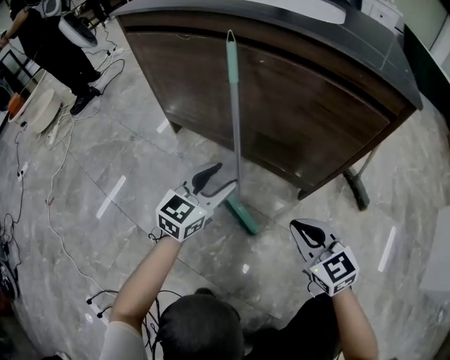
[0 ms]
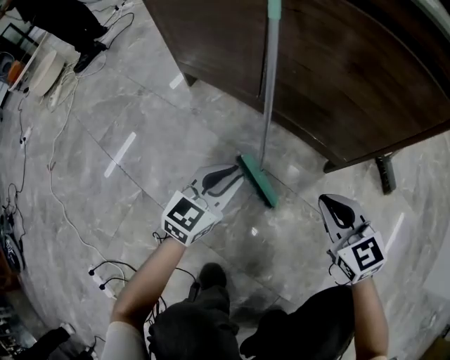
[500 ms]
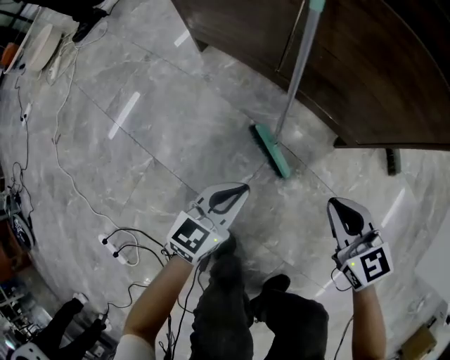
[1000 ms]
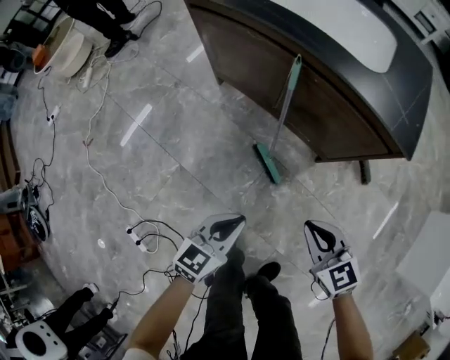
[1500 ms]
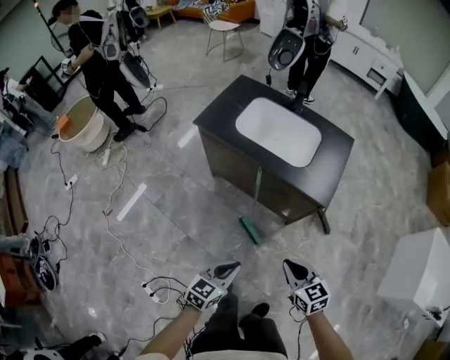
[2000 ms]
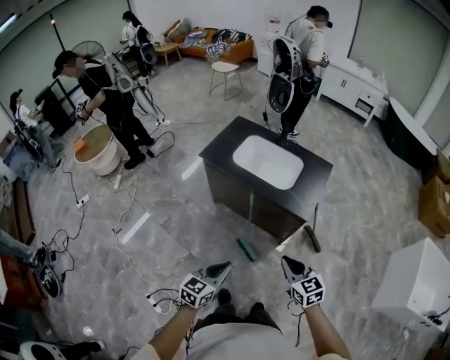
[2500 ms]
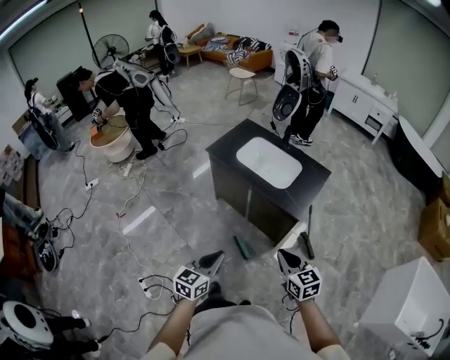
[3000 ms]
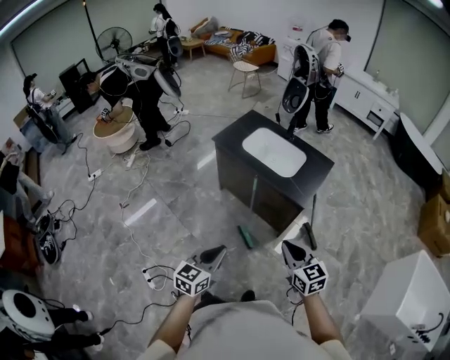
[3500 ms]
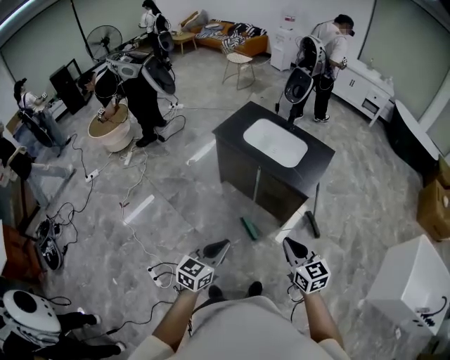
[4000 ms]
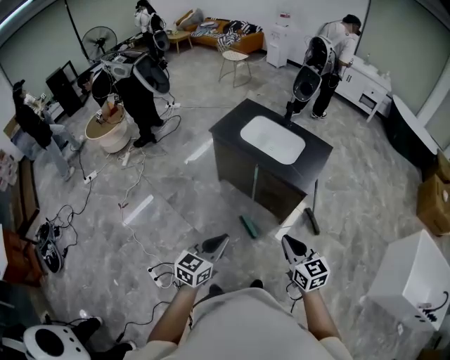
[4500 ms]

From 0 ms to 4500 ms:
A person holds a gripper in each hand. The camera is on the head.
From 0 ms to 2000 ms: The left gripper shifts approximately 50 cm upward and backward, turns by roughly 20 degrees, and closes its fingers. Meanwhile the right gripper heads upward, covering roughly 50 cm.
From 2000 ms to 4500 ms: Both grippers travel together upward and backward, about 30 cm.

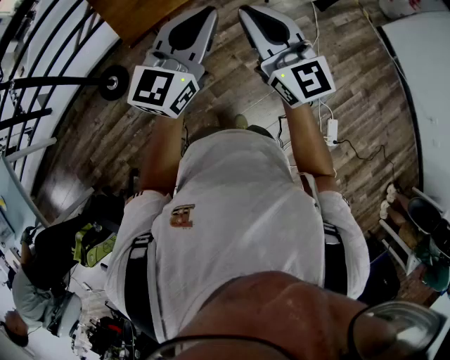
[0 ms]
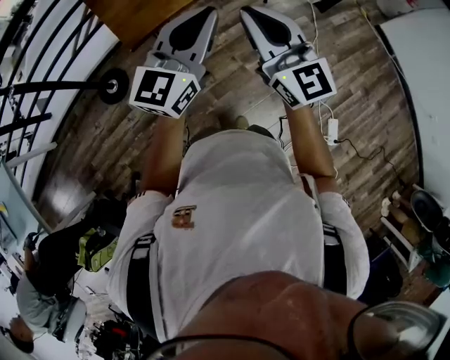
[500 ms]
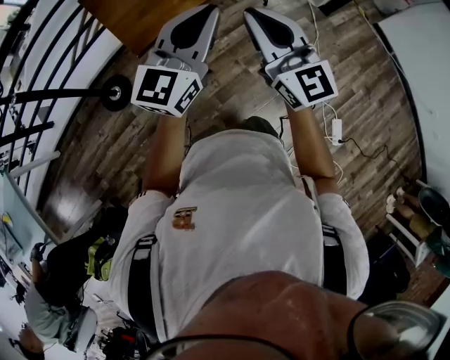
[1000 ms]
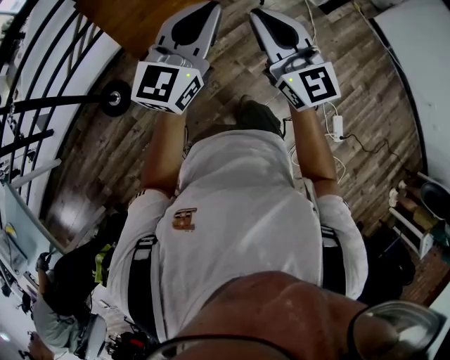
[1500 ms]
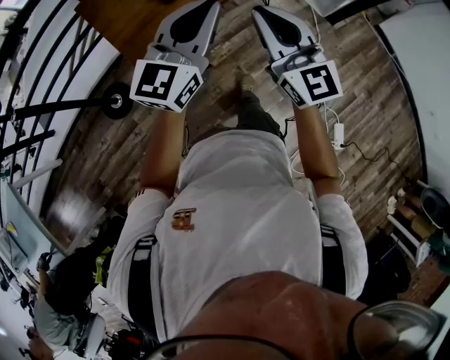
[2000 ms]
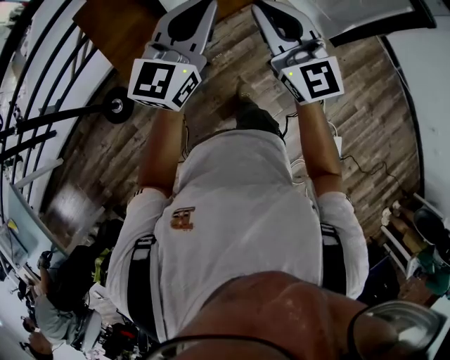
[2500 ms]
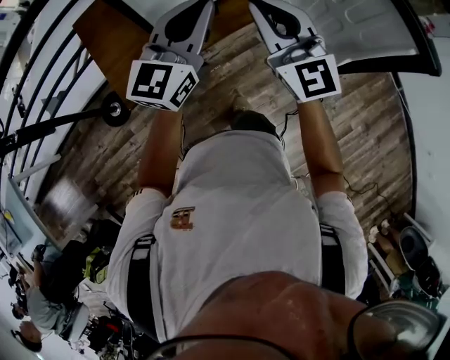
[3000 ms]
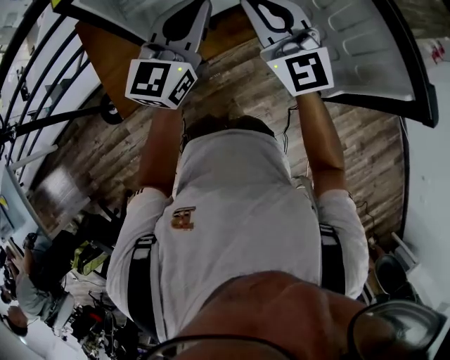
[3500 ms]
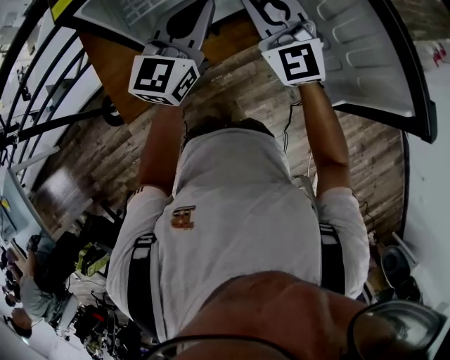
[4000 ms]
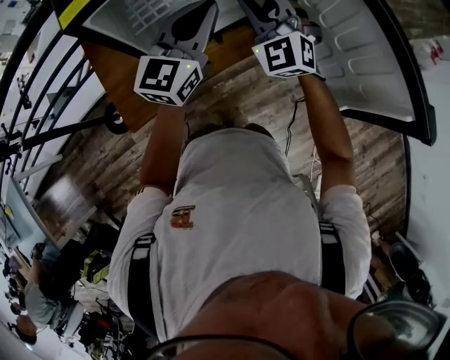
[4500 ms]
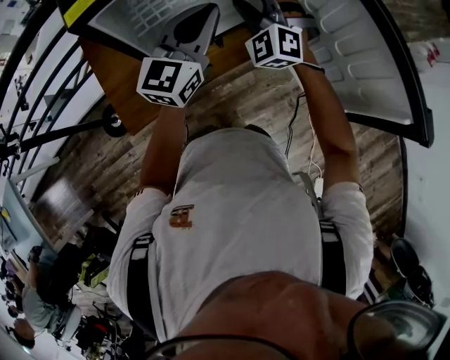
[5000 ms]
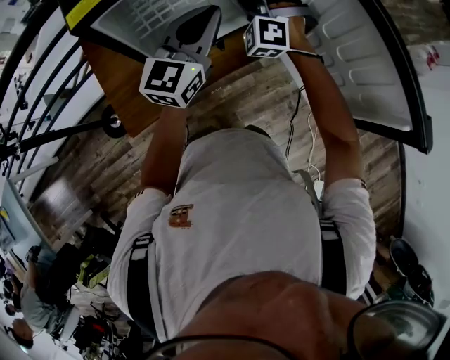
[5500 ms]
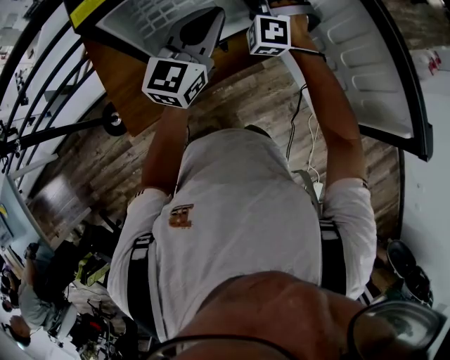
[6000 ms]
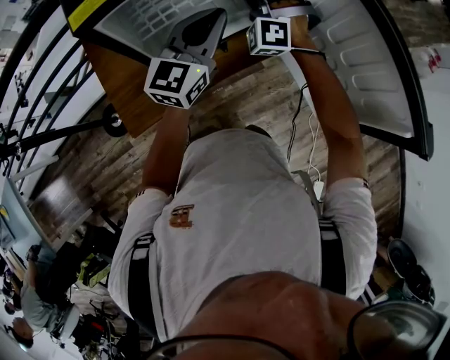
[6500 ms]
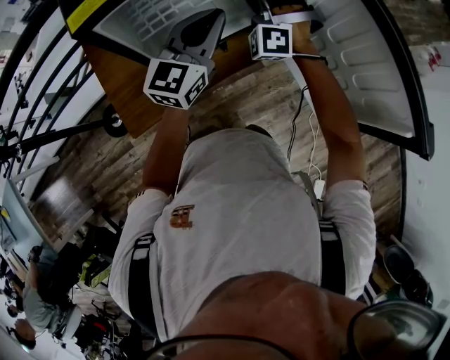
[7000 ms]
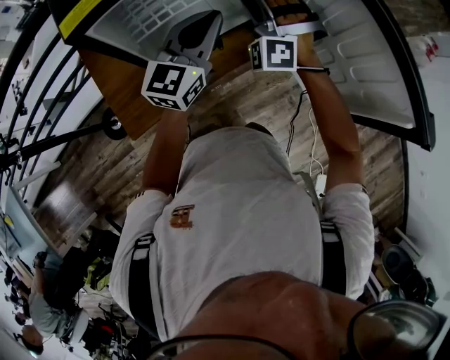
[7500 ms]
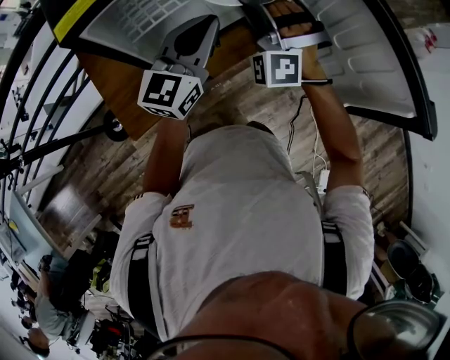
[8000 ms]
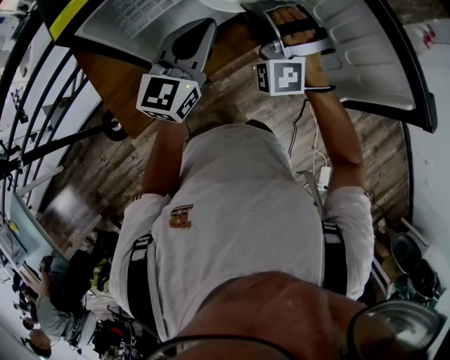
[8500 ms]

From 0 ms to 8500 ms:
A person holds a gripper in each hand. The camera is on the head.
From 0 ms to 2000 ms: The left gripper travels forward and to the left by approximately 15 cm, while the right gripper travels forward by approximately 10 cm.
From 2000 ms to 4000 ms: Both grippers are carried forward, about 40 cm. The right gripper rotates roughly 30 degrees.
From 4000 ms to 6500 ms: The right gripper travels forward and downward by approximately 15 cm, twists about 50 degrees counterclockwise, seen from behind, and opens, then closes again.
From 6500 ms to 8500 ms: The right gripper is displaced backward and to the right by approximately 10 cm.

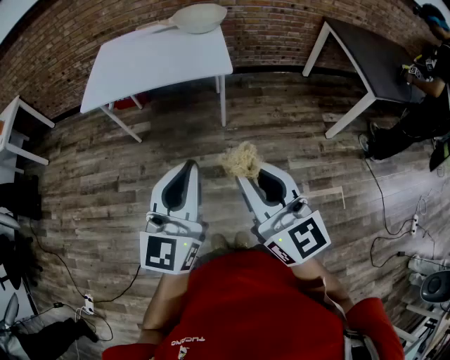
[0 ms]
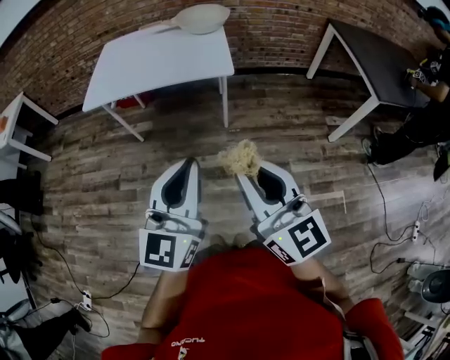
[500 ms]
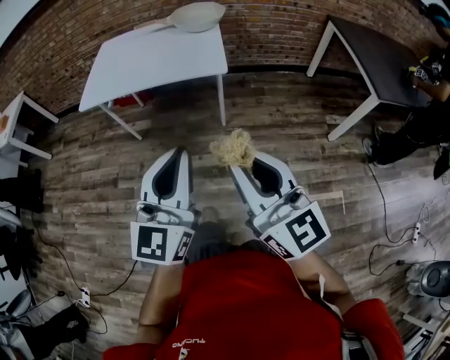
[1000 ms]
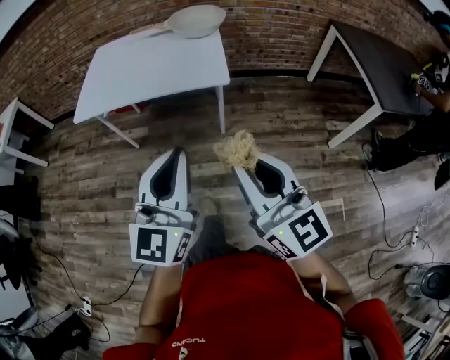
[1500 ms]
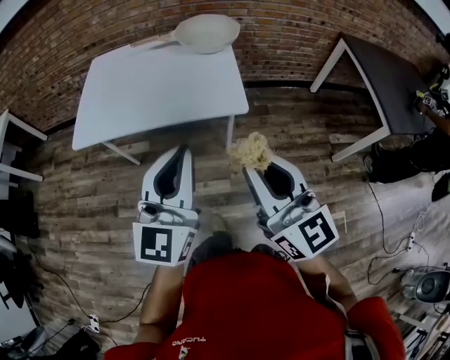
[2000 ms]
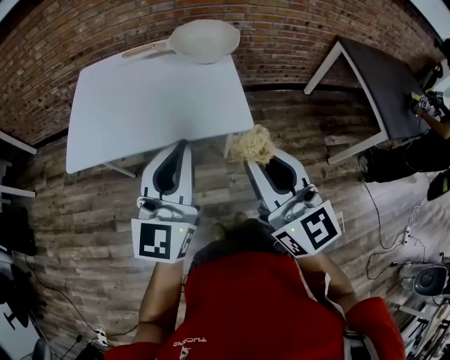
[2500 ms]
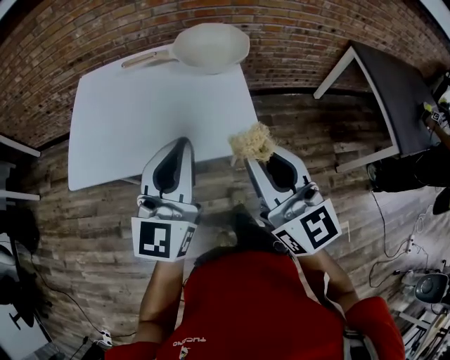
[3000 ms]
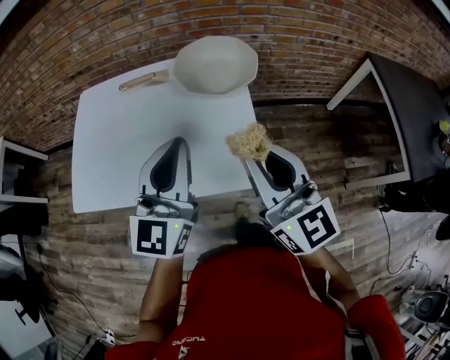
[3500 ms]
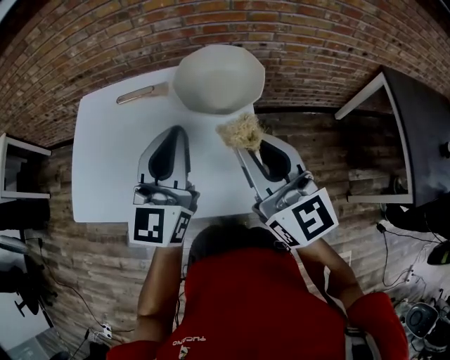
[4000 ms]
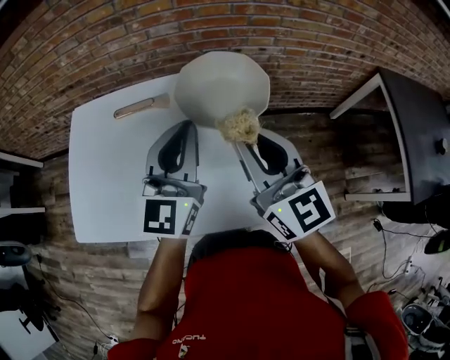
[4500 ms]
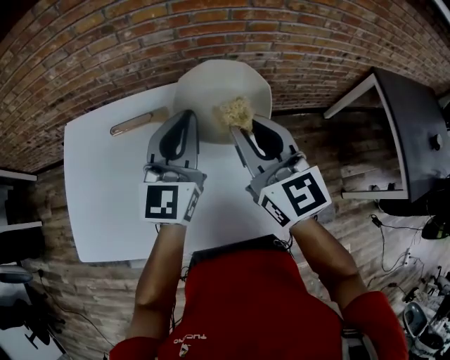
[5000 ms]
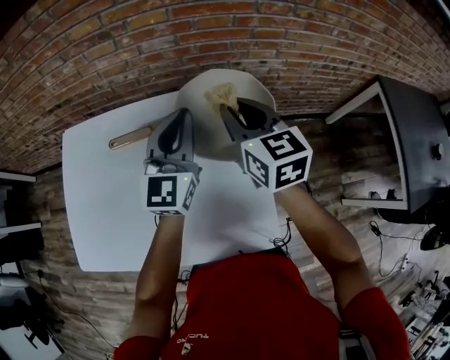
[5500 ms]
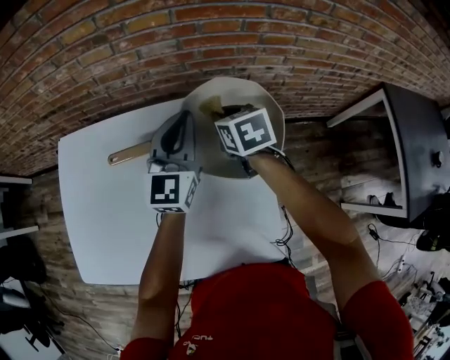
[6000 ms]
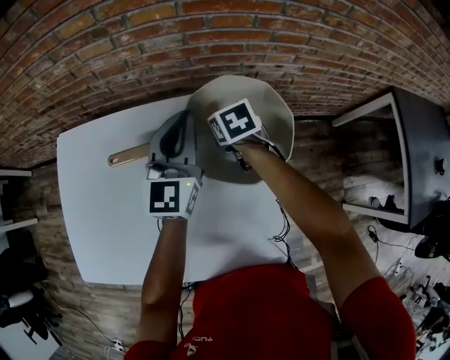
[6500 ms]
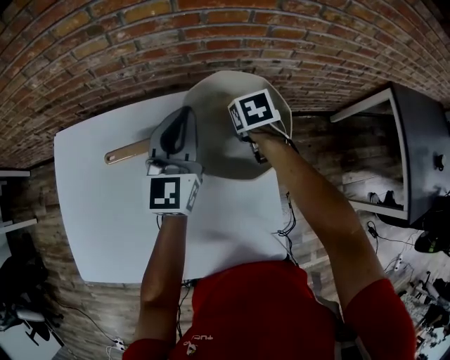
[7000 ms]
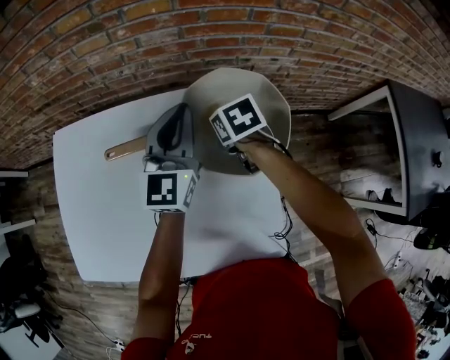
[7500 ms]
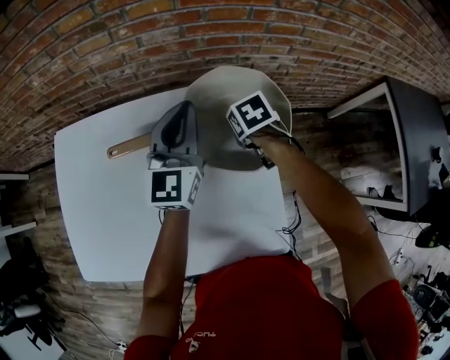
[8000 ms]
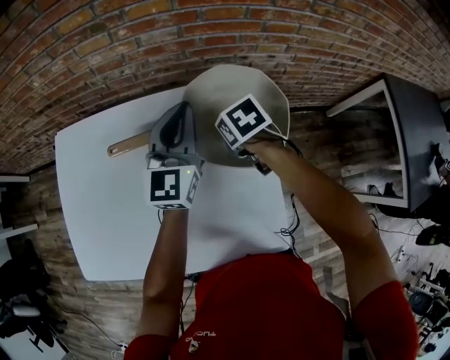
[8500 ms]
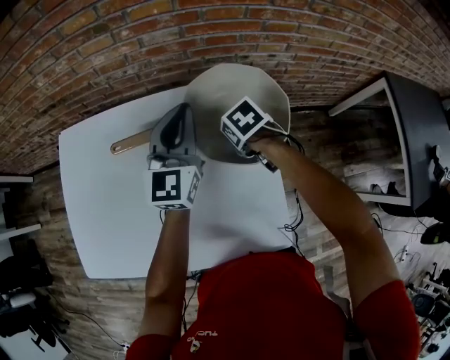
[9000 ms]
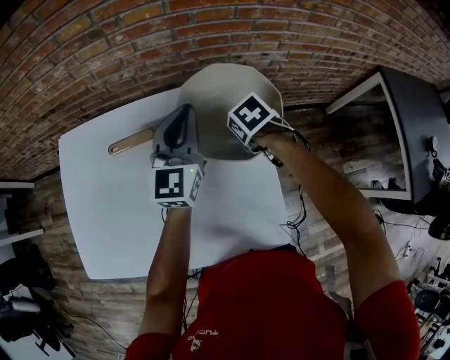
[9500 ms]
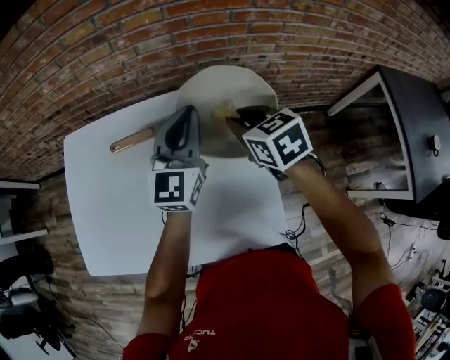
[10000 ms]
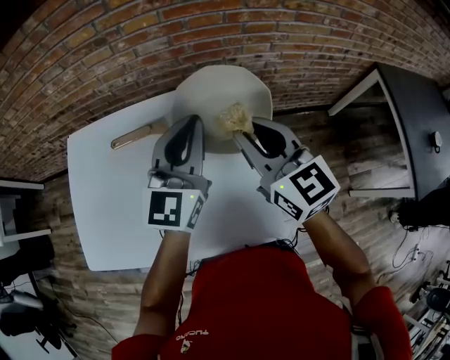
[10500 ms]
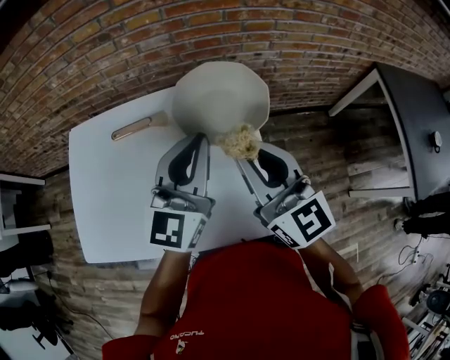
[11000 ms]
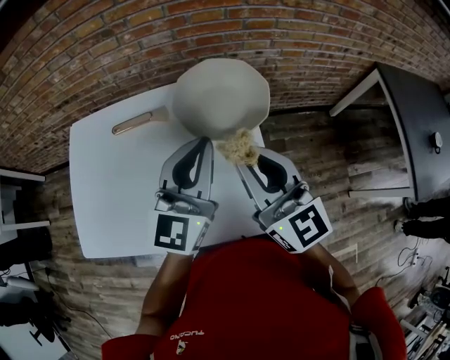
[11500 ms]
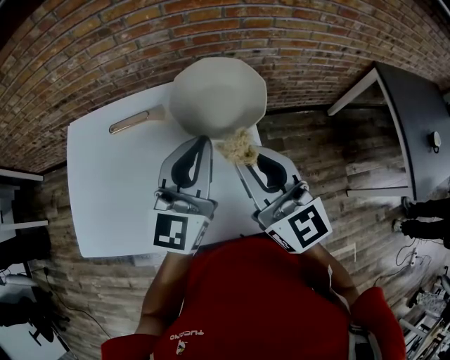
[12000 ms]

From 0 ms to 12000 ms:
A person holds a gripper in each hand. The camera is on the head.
From 0 ms to 2000 ms: The grippers both shift forward by approximately 25 cm.
From 2000 ms to 4000 ms: The two grippers travel together, forward, some 40 cm.
From 4000 ms to 6000 ms: The left gripper moves forward, roughly 30 cm. Meanwhile the right gripper shifts approximately 40 cm forward and downward, and tips its fingers downward by about 50 degrees.
From 6000 ms to 8000 ms: The right gripper travels downward by roughly 10 cm, and swivels about 30 degrees.
From 8000 ms to 10000 ms: The right gripper travels upward by some 15 cm, and tips its fingers upward by roughly 30 degrees, while the left gripper ends up approximately 5 cm from where it was.
From 10000 ms to 12000 ms: The left gripper moves backward, approximately 15 cm; the right gripper shifts approximately 20 cm backward and upward, and points its fingers about 40 degrees further upward.

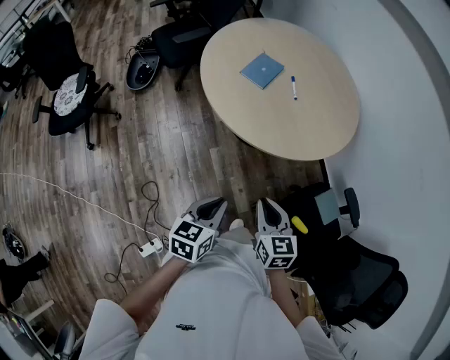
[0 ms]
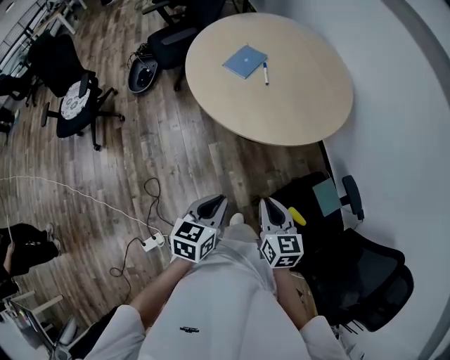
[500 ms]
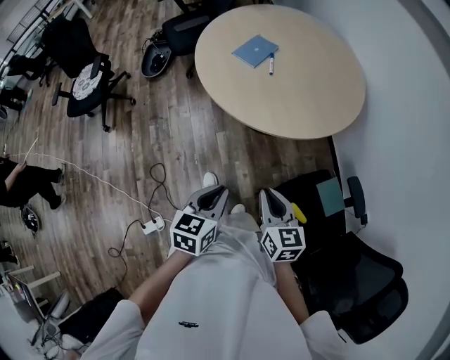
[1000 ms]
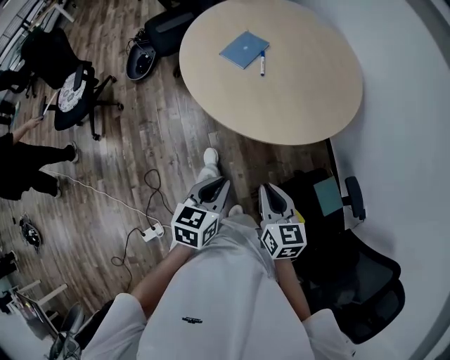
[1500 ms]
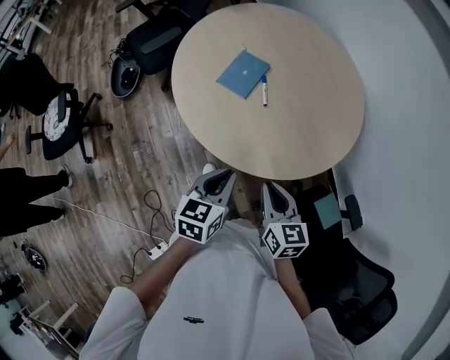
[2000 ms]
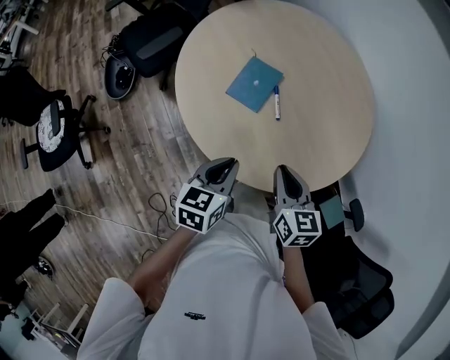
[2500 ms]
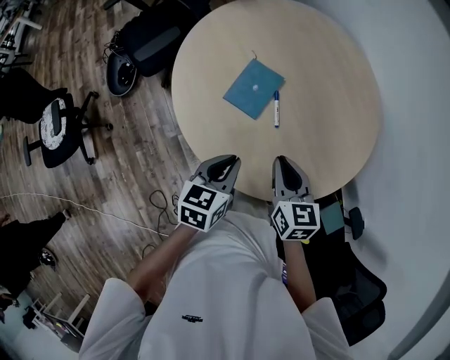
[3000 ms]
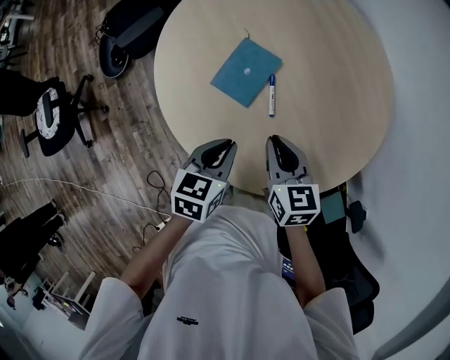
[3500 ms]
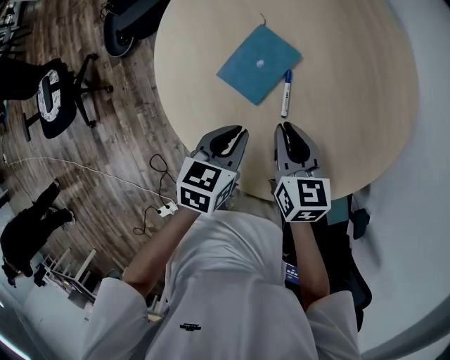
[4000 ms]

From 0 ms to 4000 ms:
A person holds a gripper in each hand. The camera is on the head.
From 0 ms to 2000 ms: The grippers both shift forward by roughly 25 cm.
From 2000 ms to 4000 ms: The right gripper goes about 35 cm forward. Meanwhile the left gripper heads forward and downward, covering approximately 35 cm.
